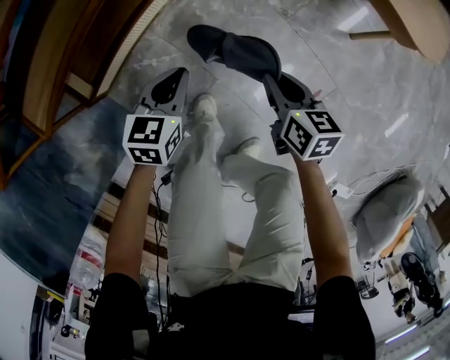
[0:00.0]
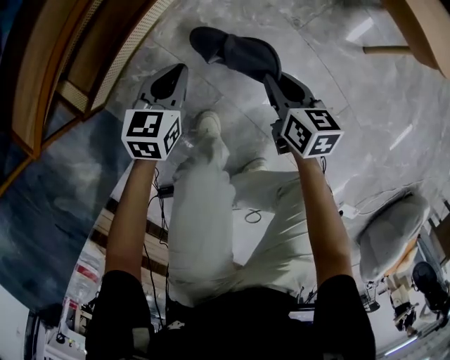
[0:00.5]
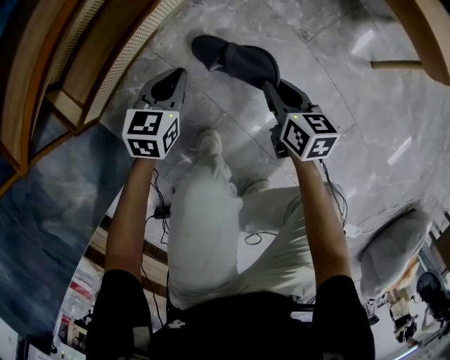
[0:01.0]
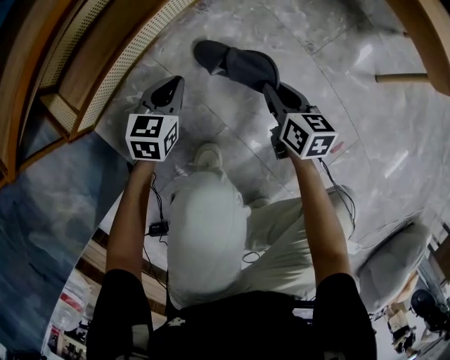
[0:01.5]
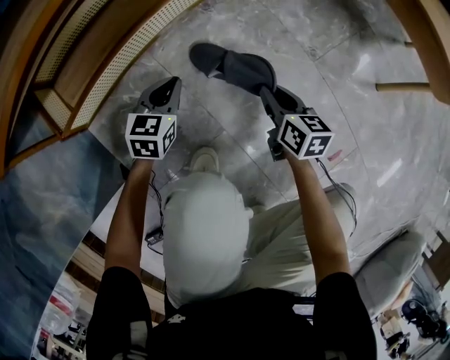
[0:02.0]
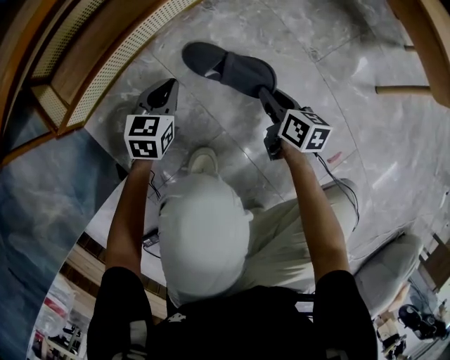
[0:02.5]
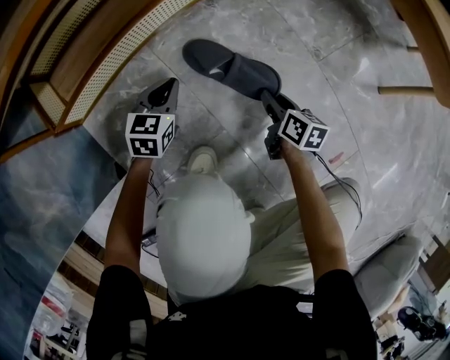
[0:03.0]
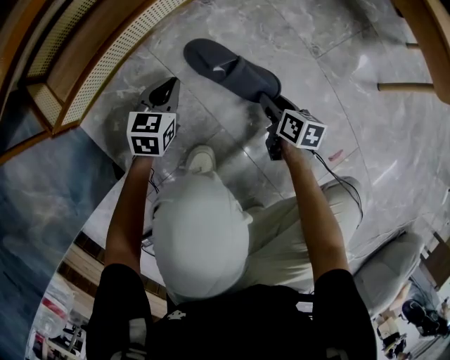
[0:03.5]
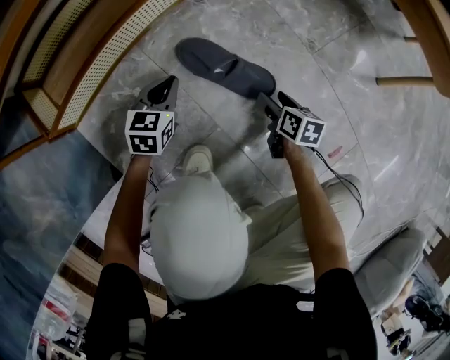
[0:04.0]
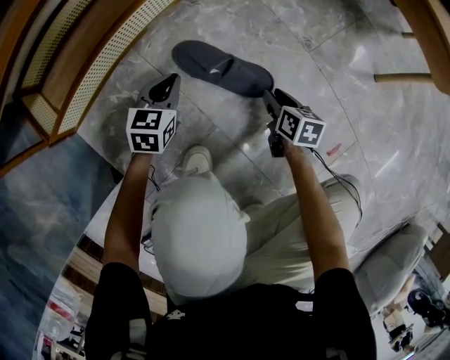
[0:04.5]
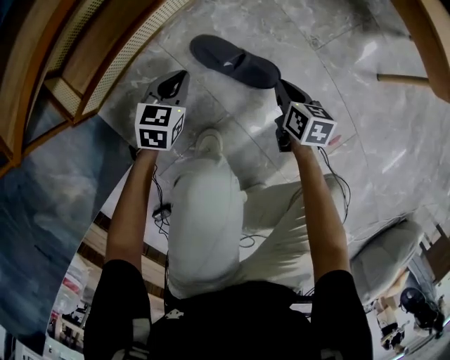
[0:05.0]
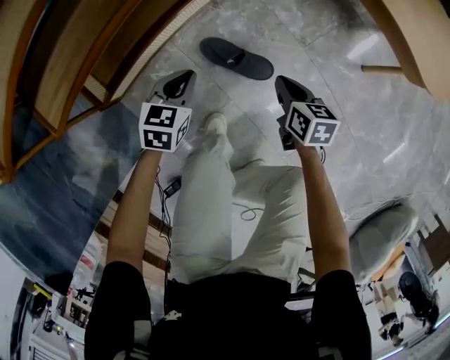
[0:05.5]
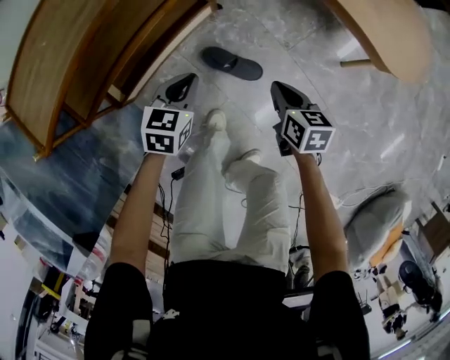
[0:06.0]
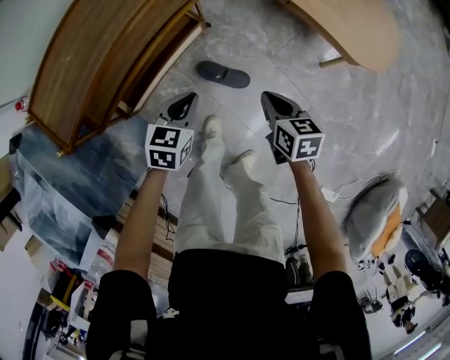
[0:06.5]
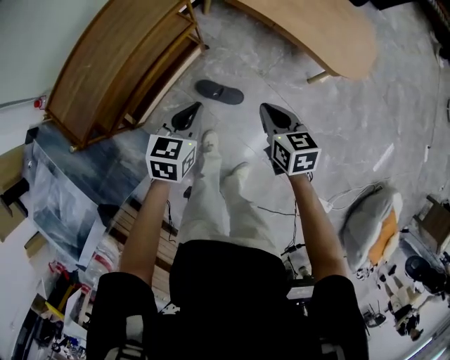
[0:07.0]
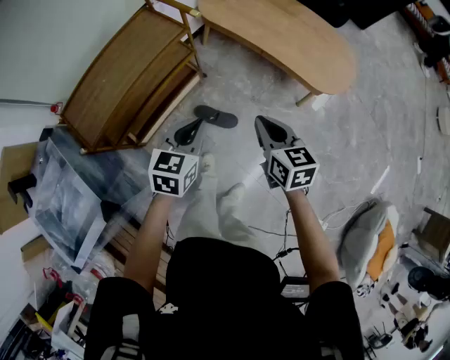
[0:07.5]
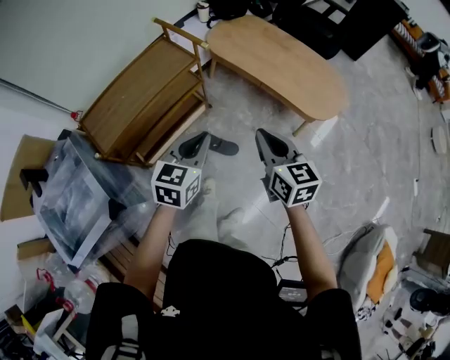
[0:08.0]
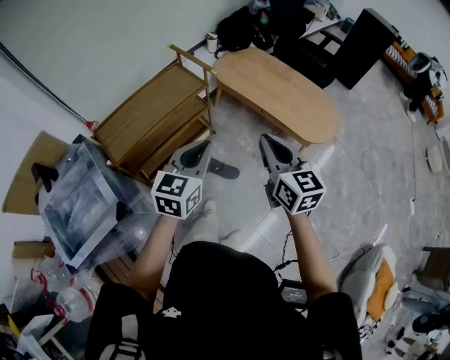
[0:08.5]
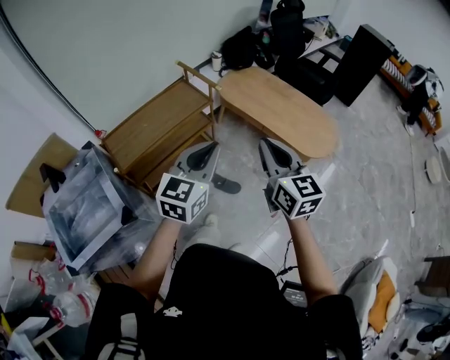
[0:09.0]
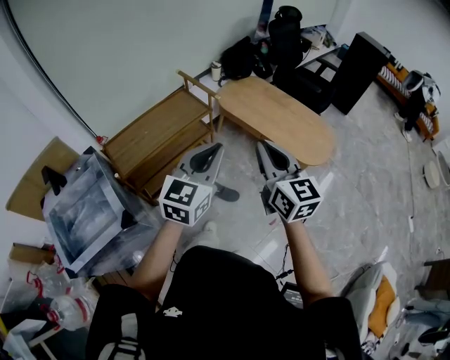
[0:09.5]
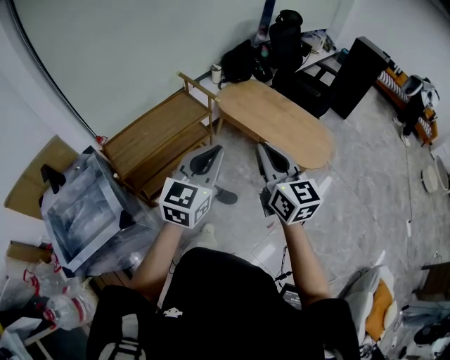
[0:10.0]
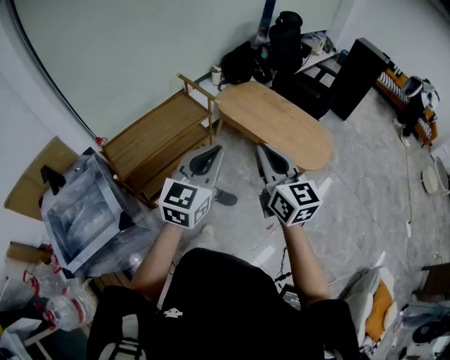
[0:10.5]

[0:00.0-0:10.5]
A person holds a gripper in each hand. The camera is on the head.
0.0 to 2.0 s: Both grippers move downward, about 25 cm.
2.0 to 4.0 s: The right gripper goes about 10 cm downward, and opens up; the left gripper heads downward, covering some 5 cm.
4.0 to 6.5 s: The grippers both shift upward by some 60 cm. The right gripper closes.
6.5 to 8.5 s: Both grippers move upward, roughly 40 cm. The right gripper angles its fingers upward, by roughly 30 degrees. Meanwhile the left gripper rotates approximately 30 degrees.
8.5 to 10.5 s: The two grippers go about 10 cm upward.

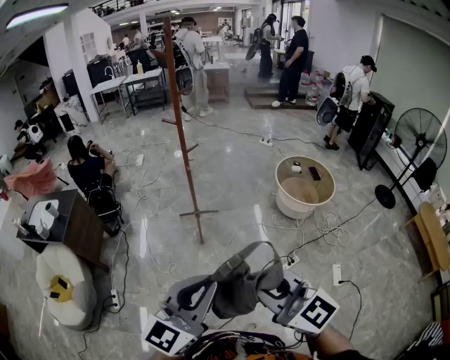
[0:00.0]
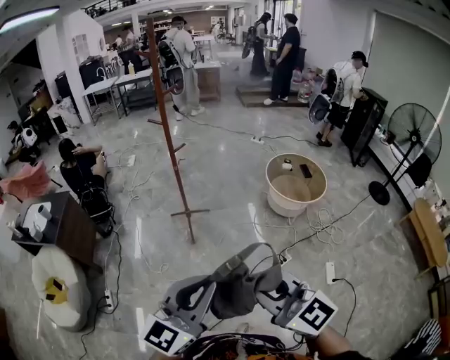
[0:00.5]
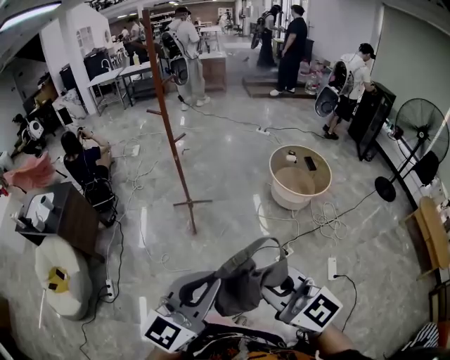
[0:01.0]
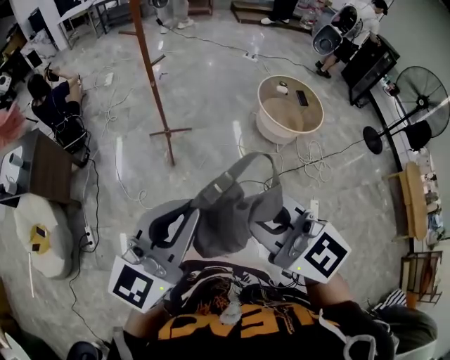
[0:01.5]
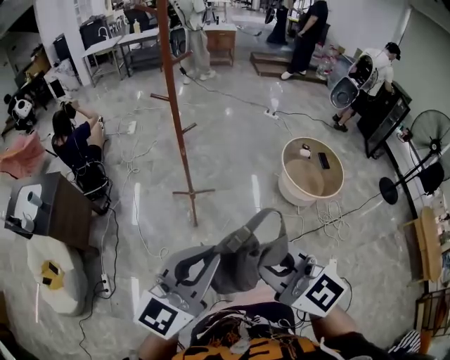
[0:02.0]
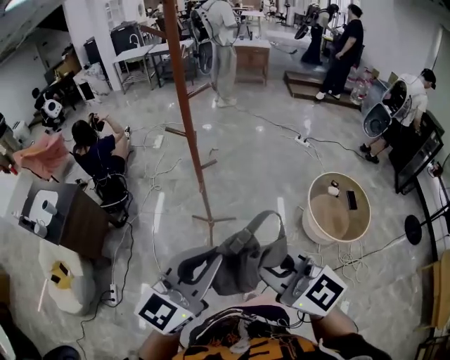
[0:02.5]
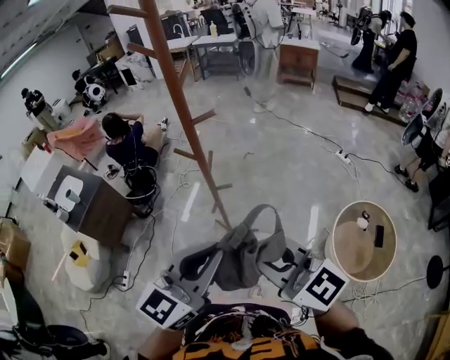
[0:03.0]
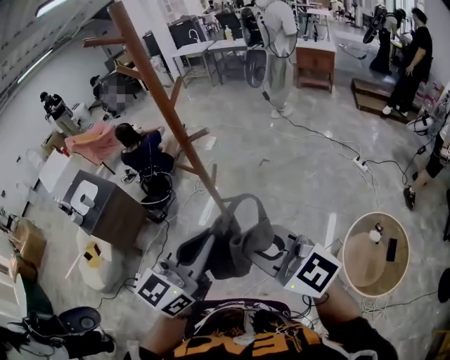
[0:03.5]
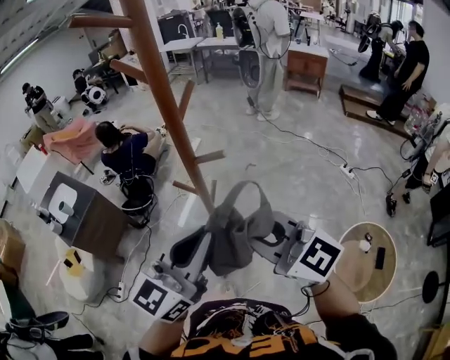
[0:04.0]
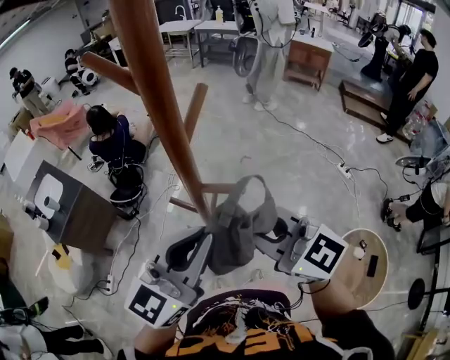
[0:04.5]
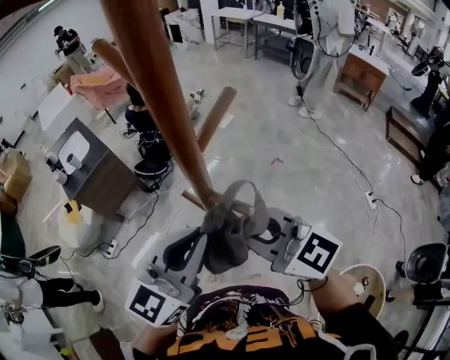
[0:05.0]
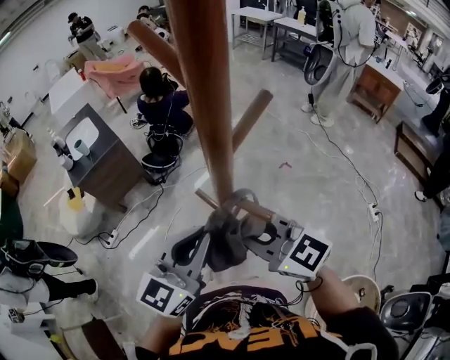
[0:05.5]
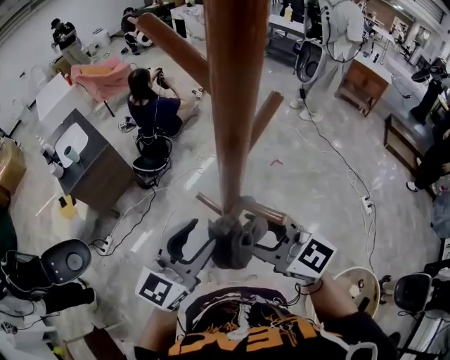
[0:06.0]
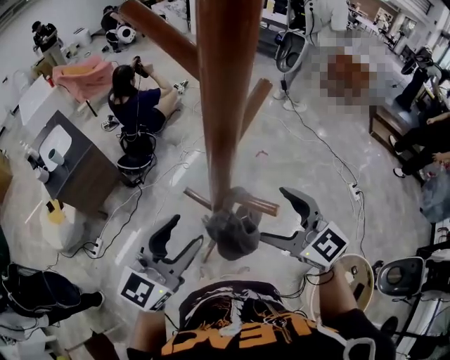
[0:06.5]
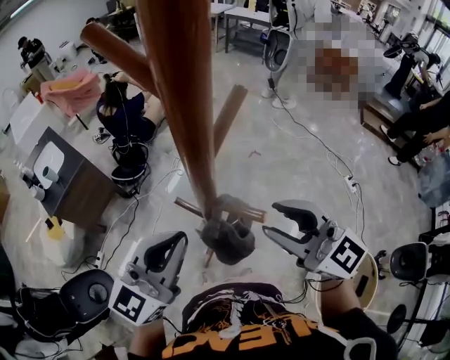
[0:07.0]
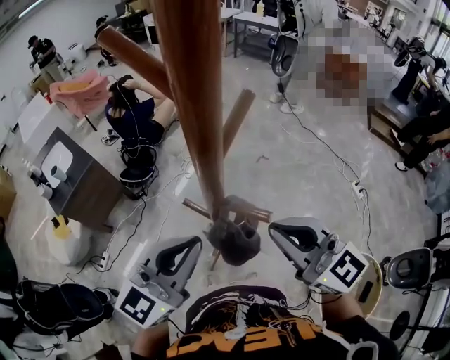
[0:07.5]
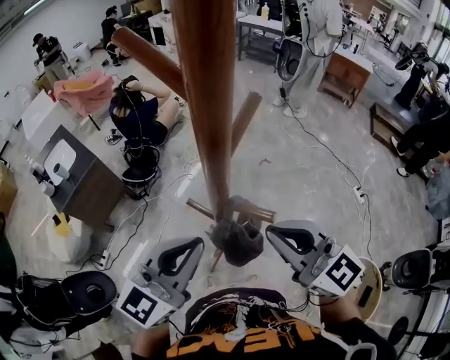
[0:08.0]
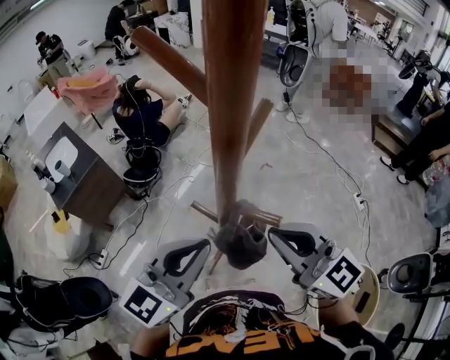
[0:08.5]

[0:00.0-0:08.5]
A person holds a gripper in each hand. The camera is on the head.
0.0 to 2.0 s: Both grippers travel together forward, about 25 cm.
2.0 to 4.0 s: Both grippers are carried roughly 50 cm. The right gripper changes its angle by roughly 30 degrees. Meanwhile the left gripper rotates about 30 degrees.
4.0 to 6.5 s: The left gripper shifts approximately 15 cm forward and downward, and opens. The right gripper shifts approximately 20 cm forward, downward and to the right, and opens up.
6.5 to 8.5 s: The right gripper heads upward, covering about 10 cm, and closes. Meanwhile the left gripper shifts by roughly 5 cm, and closes.

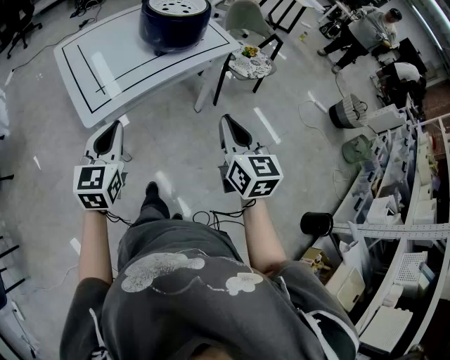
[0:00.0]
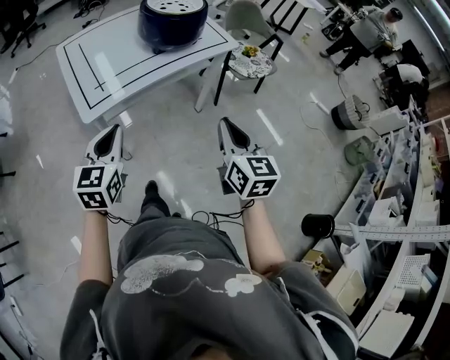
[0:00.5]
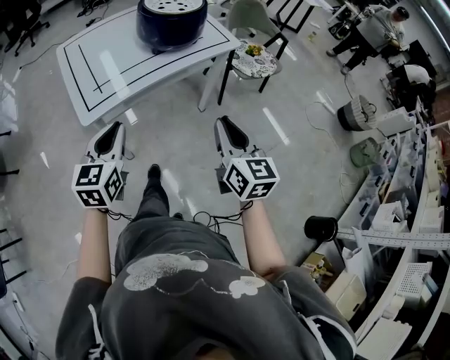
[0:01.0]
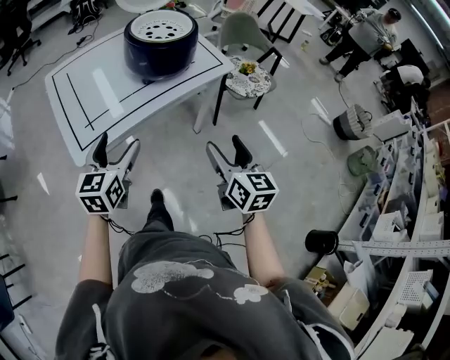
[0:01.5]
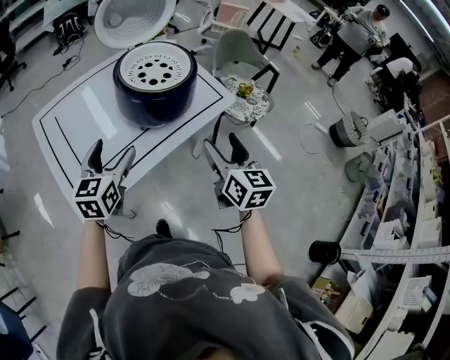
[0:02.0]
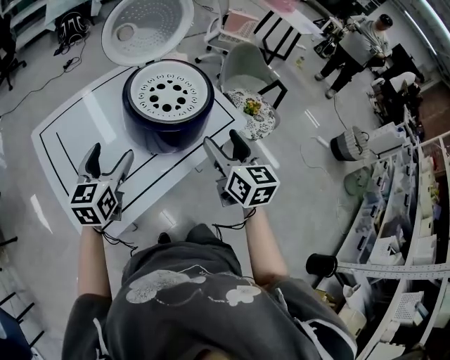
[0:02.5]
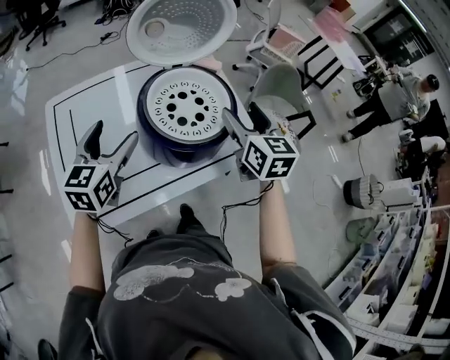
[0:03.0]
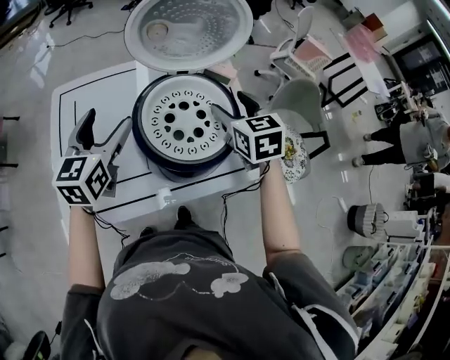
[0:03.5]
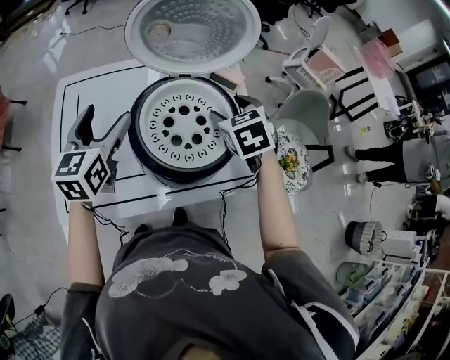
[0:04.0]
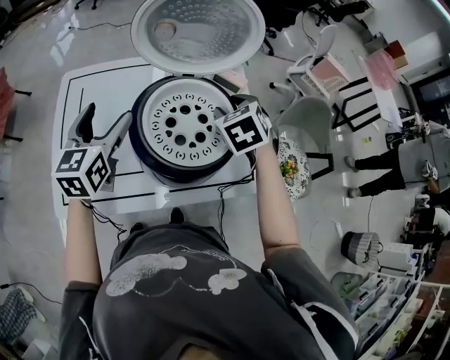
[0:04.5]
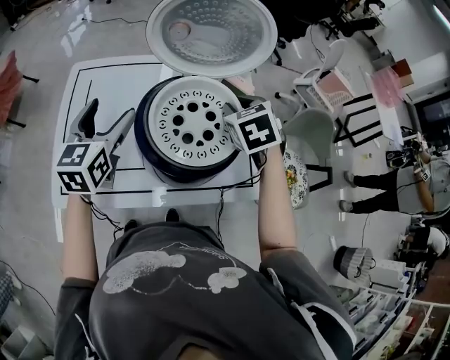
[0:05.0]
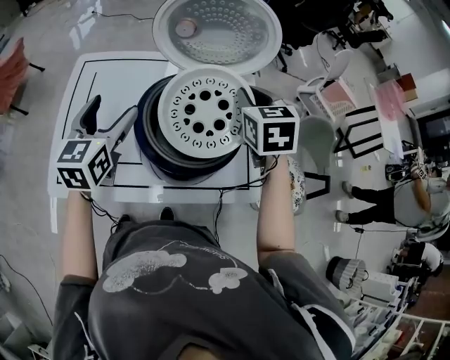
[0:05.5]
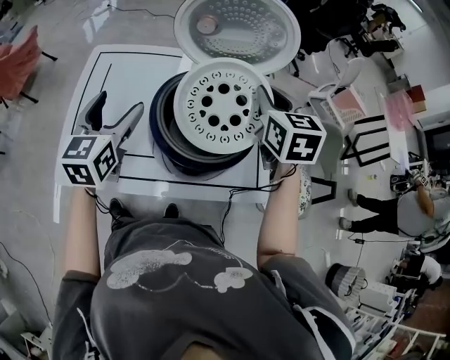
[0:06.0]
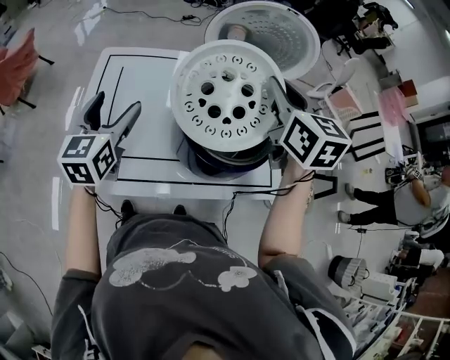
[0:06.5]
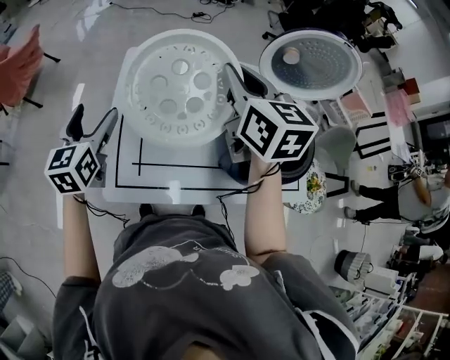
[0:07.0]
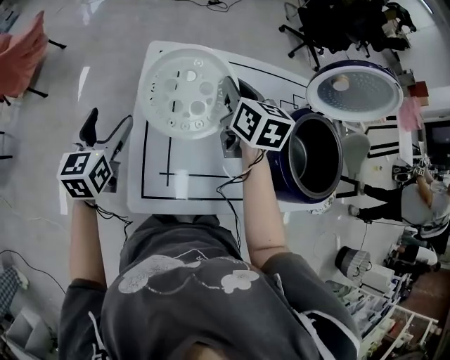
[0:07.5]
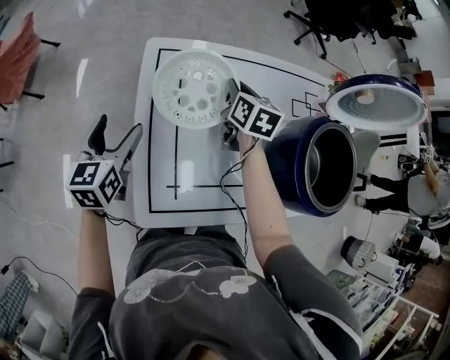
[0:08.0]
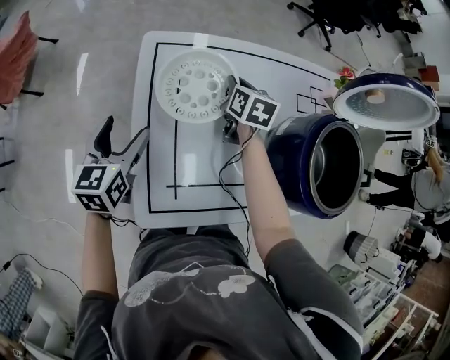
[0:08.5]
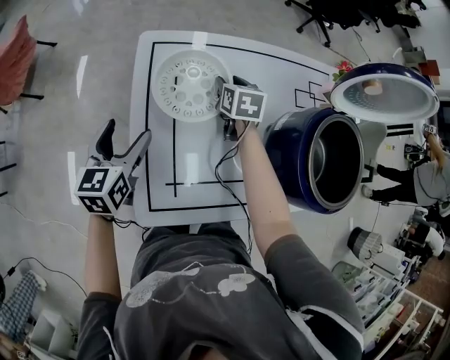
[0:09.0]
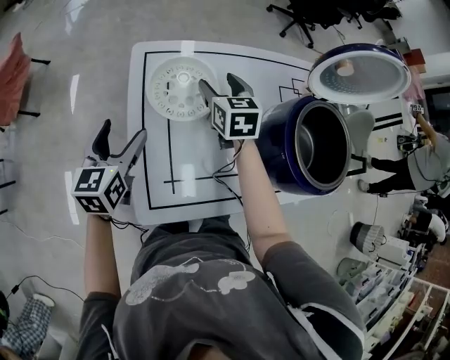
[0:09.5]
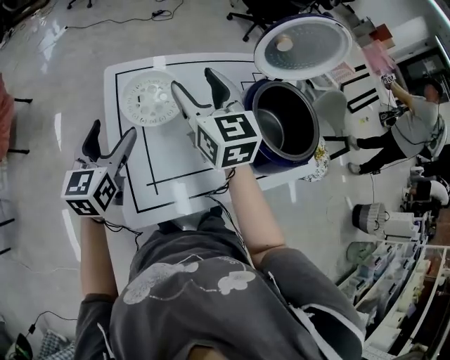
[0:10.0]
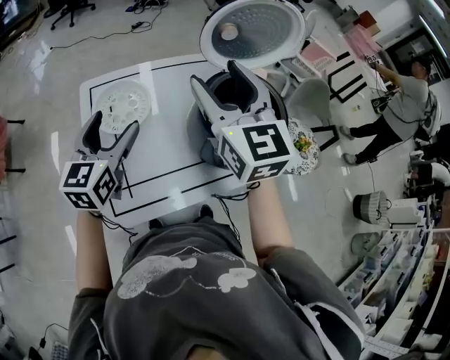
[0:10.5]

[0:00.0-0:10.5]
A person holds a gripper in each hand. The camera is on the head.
0.0 to 2.0 s: Both grippers travel together forward, some 30 cm. The left gripper opens, while the right gripper opens up.
2.0 to 4.0 s: The right gripper reaches some 5 cm upward, then returns, and tips its fingers downward by approximately 30 degrees. Meanwhile the left gripper changes place by about 20 cm, and rotates approximately 30 degrees.
4.0 to 6.5 s: The right gripper goes about 15 cm upward, swivels some 30 degrees, and closes up; the left gripper shifts roughly 10 cm to the left and backward.
6.5 to 8.5 s: The left gripper shifts roughly 35 cm to the left, downward and forward; the right gripper is displaced downward, to the left and forward by roughly 50 cm, and turns by some 30 degrees.
8.5 to 10.5 s: The left gripper heads to the right and upward, covering about 25 cm, and swivels approximately 20 degrees; the right gripper goes some 40 cm upward and backward, tilts its fingers roughly 40 degrees upward, and opens its fingers.
